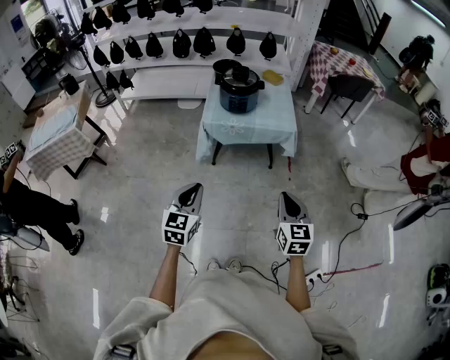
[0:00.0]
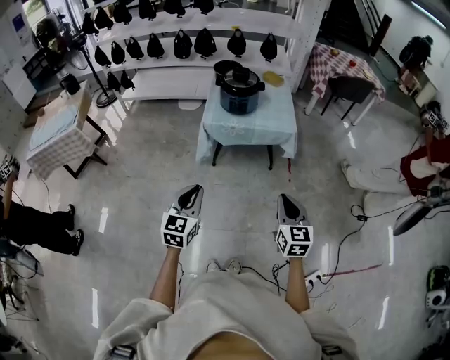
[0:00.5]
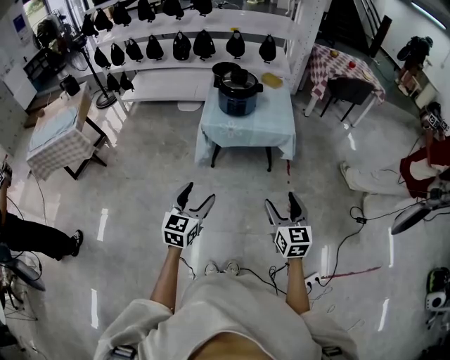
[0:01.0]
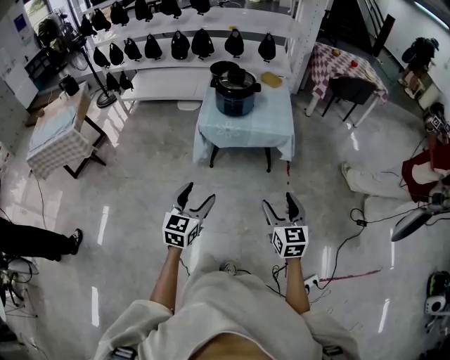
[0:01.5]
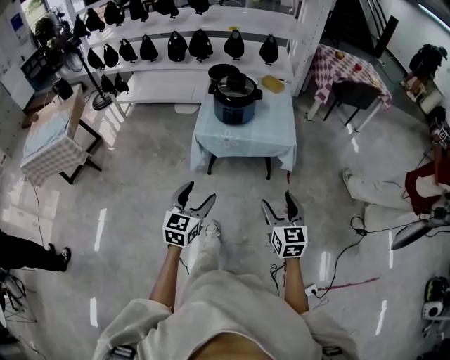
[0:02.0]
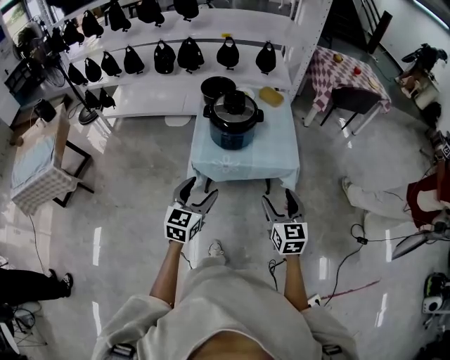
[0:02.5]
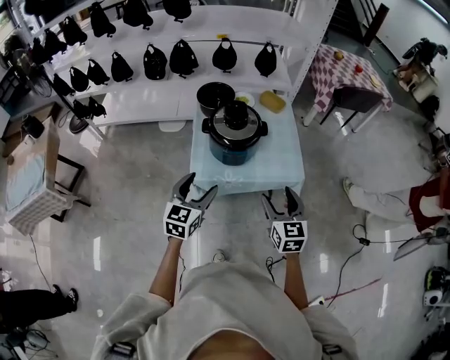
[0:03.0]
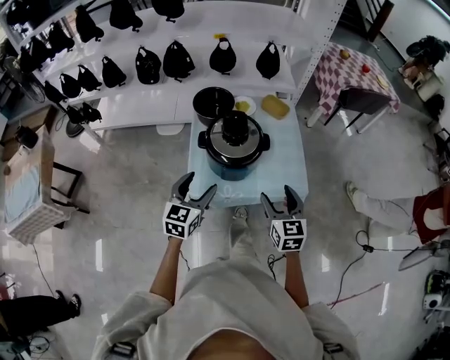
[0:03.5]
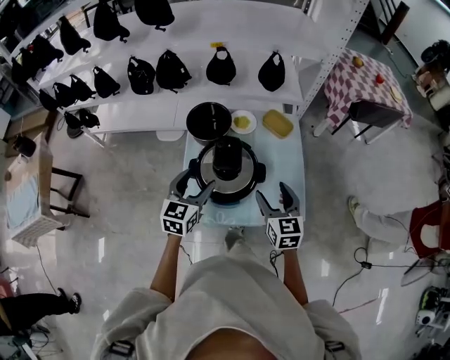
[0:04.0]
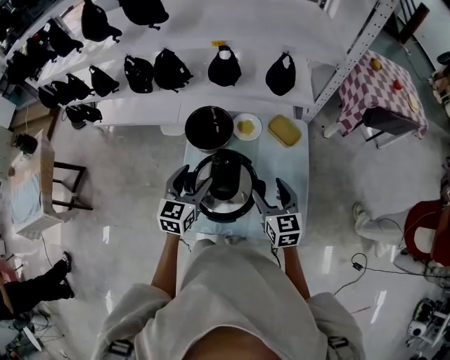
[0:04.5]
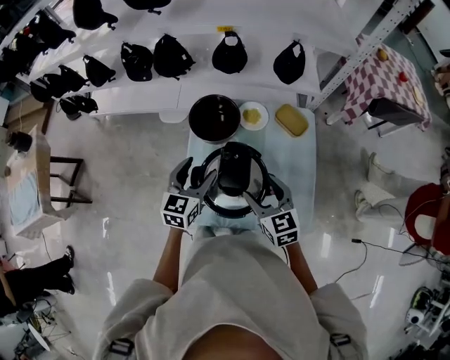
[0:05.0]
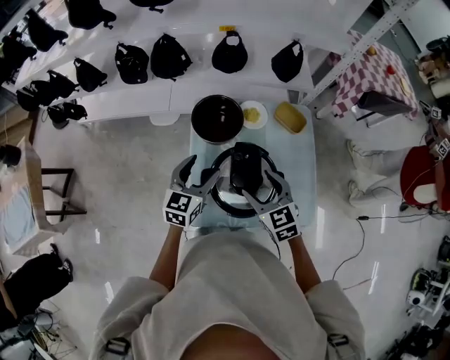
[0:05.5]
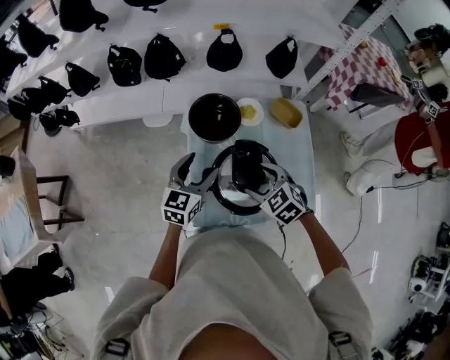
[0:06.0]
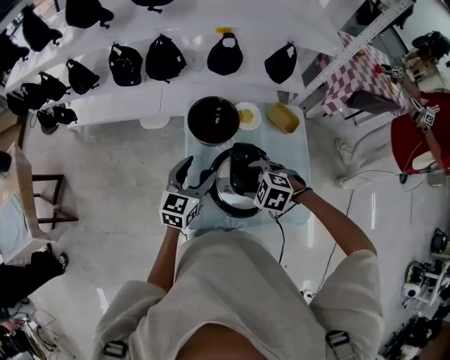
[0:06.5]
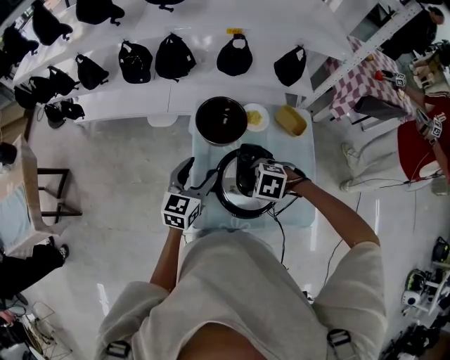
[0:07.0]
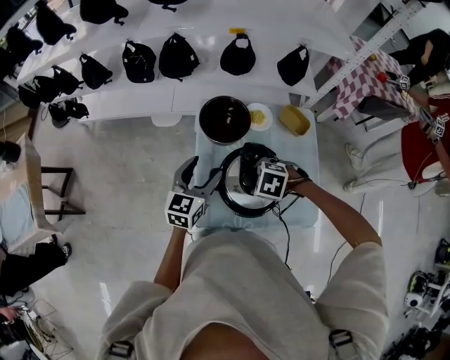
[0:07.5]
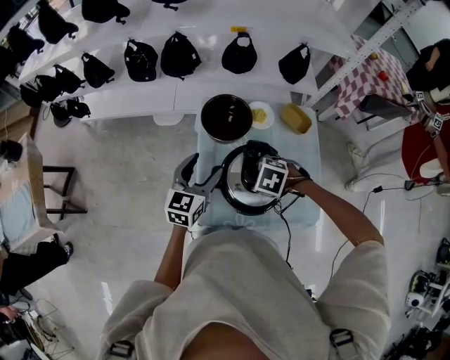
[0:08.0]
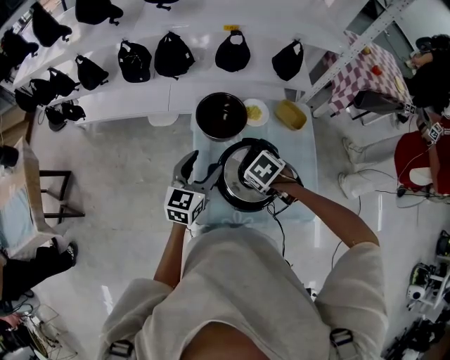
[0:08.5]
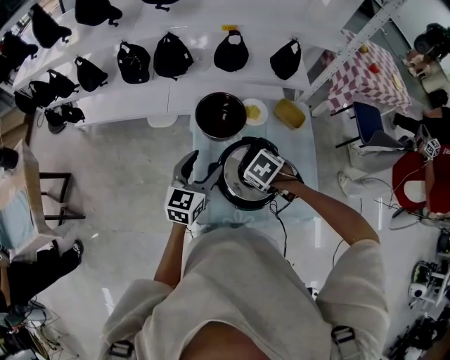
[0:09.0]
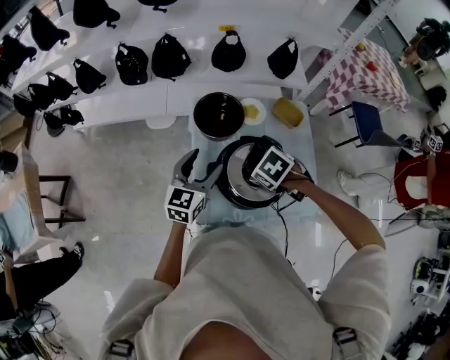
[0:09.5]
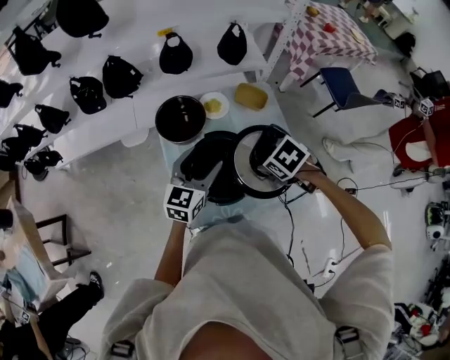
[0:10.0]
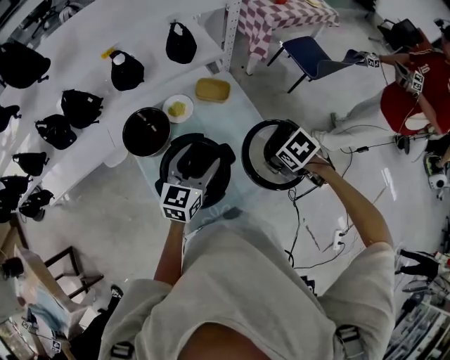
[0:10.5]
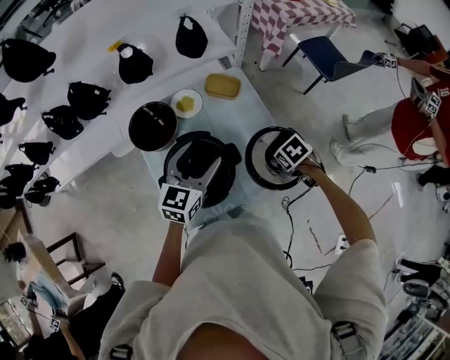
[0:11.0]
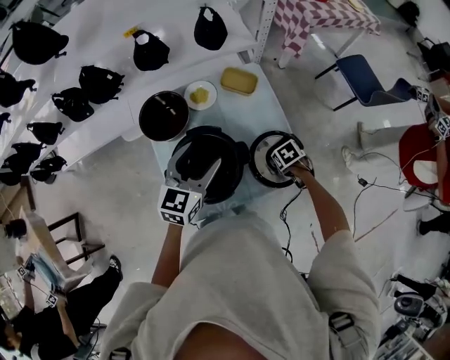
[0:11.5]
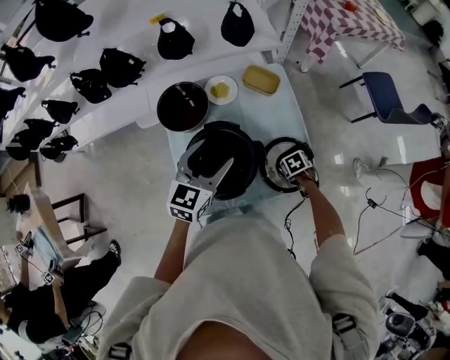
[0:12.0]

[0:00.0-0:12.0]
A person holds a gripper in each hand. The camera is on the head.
0:00.0 to 0:02.0: The left gripper travels forward and to the right by approximately 15 cm, and opens its fingers; the right gripper heads forward, covering about 10 cm, and opens its fingers.
0:02.0 to 0:04.0: The two grippers travel together, forward, roughly 60 cm.
0:04.0 to 0:06.0: The left gripper shifts approximately 15 cm forward and to the left. Meanwhile the right gripper goes about 20 cm to the left and forward, and tilts its fingers some 30 degrees downward.
0:06.0 to 0:08.0: The right gripper swivels approximately 40 degrees.
0:08.0 to 0:10.0: The left gripper shifts by about 10 cm. The right gripper changes place by some 15 cm, and rotates roughly 40 degrees.
0:10.0 to 0:12.0: The right gripper moves downward, about 25 cm, and rotates some 20 degrees.

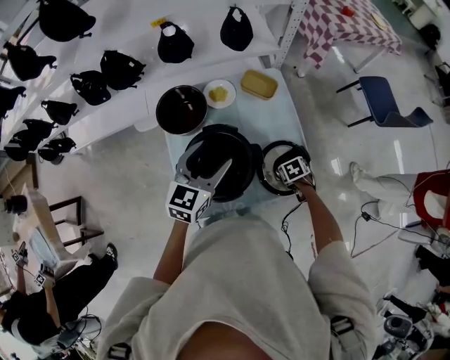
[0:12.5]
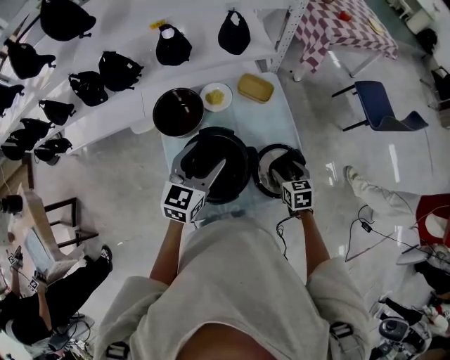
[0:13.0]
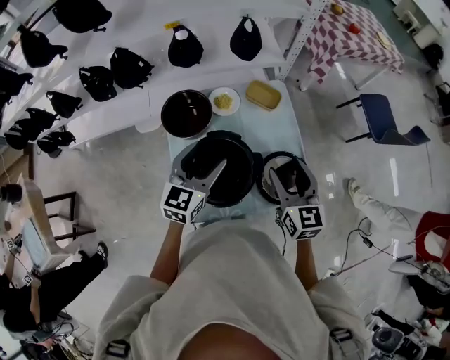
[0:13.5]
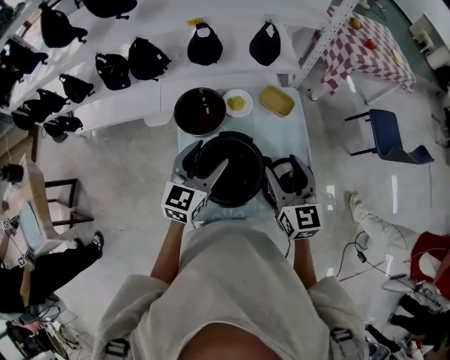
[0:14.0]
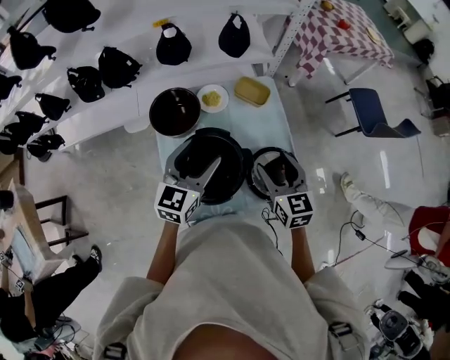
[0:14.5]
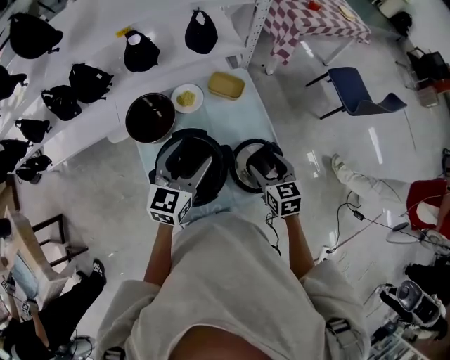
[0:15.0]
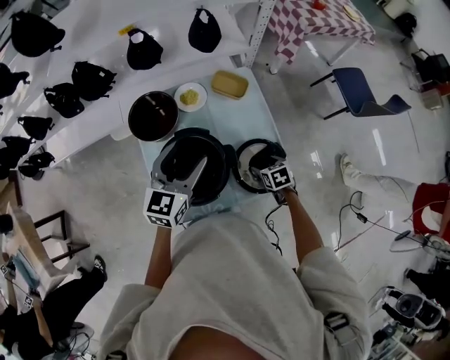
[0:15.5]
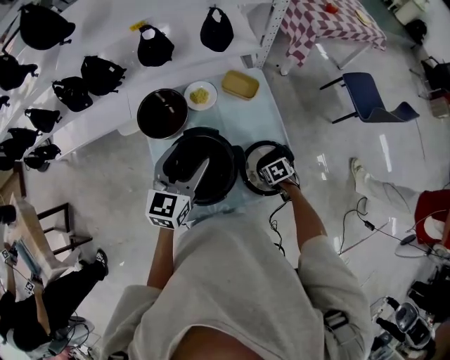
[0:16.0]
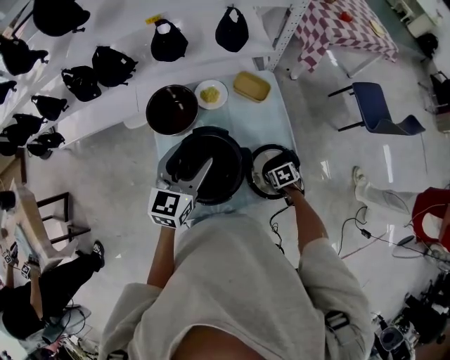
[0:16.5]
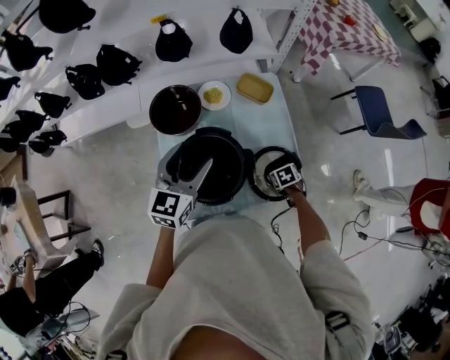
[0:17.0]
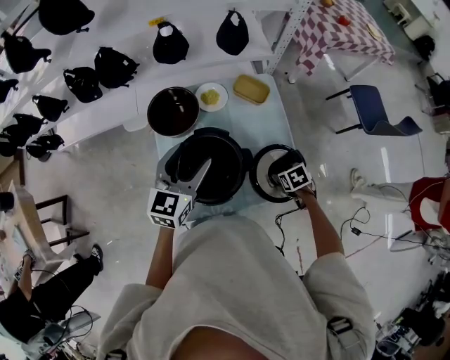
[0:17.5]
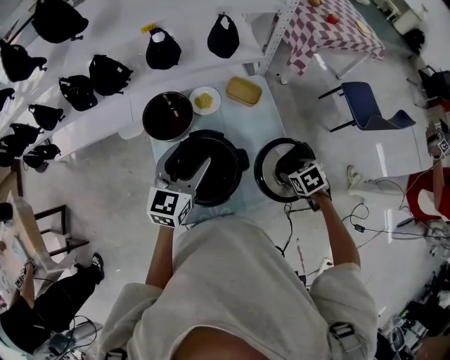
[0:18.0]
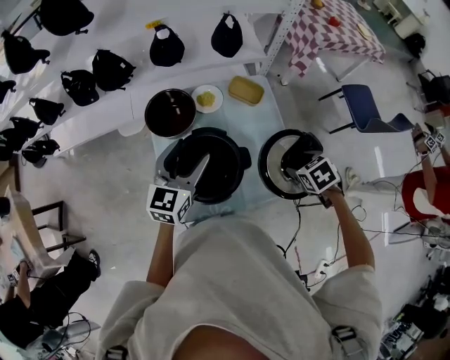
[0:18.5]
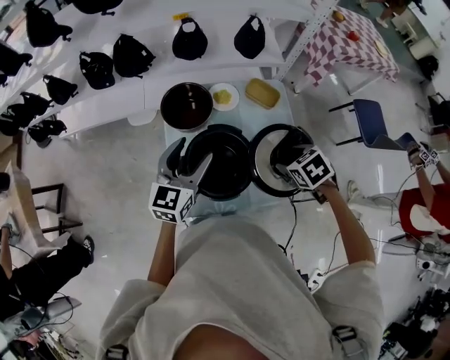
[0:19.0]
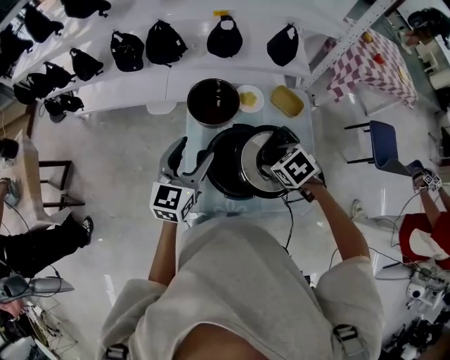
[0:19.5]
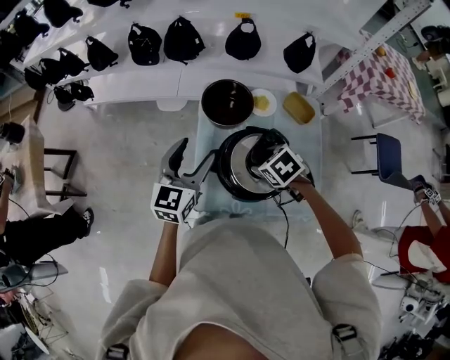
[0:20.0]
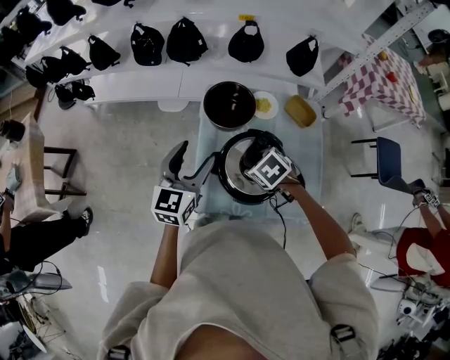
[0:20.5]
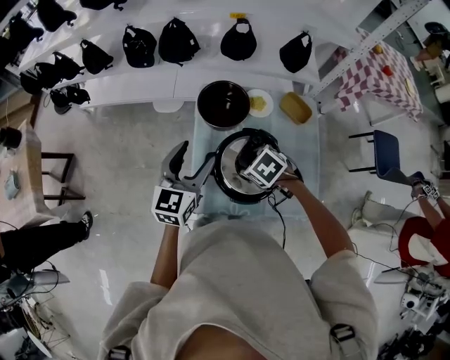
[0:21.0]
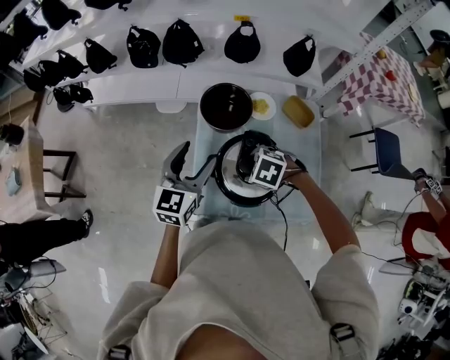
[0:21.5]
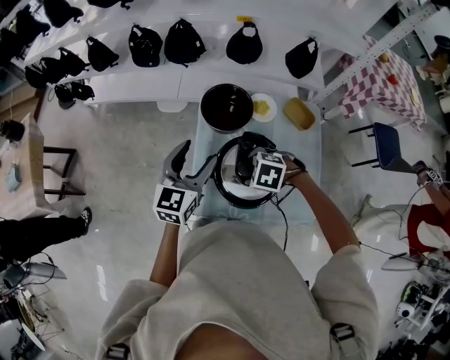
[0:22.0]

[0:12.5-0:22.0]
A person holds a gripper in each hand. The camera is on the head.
0:12.5 to 0:14.5: The right gripper heads upward, covering some 30 cm, and tips its fingers upward by approximately 60 degrees.
0:14.5 to 0:16.5: The right gripper goes approximately 30 cm downward, and tilts its fingers about 50 degrees downward.
0:16.5 to 0:18.0: The right gripper moves upward, some 15 cm.
0:18.0 to 0:20.0: The right gripper moves roughly 30 cm, and rotates some 30 degrees. Meanwhile the left gripper changes place by roughly 15 cm, and swivels approximately 20 degrees.
0:20.0 to 0:22.0: The right gripper turns by approximately 40 degrees.

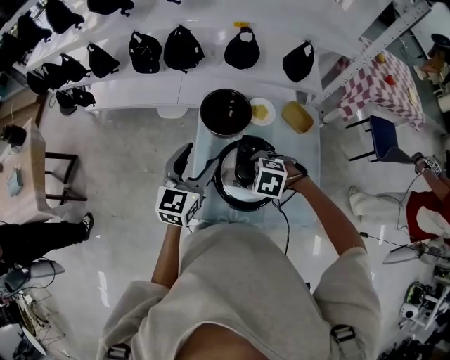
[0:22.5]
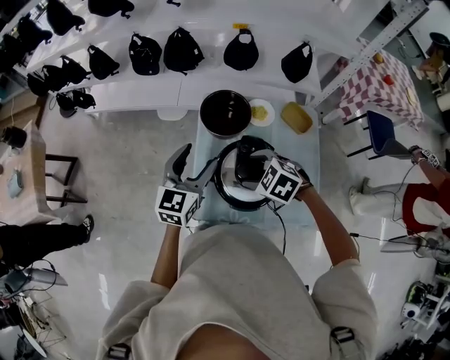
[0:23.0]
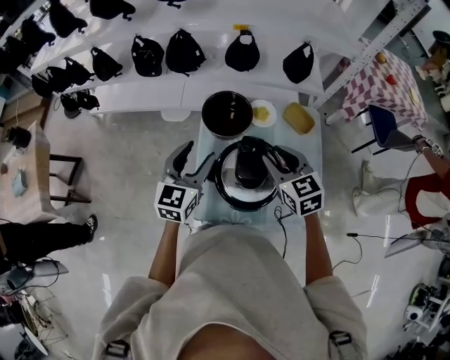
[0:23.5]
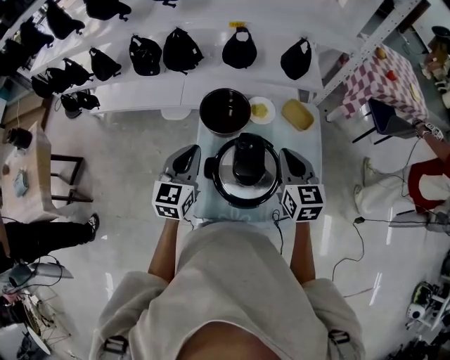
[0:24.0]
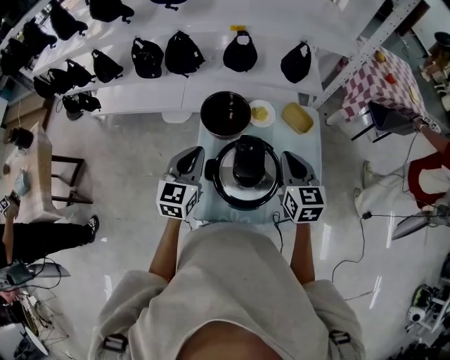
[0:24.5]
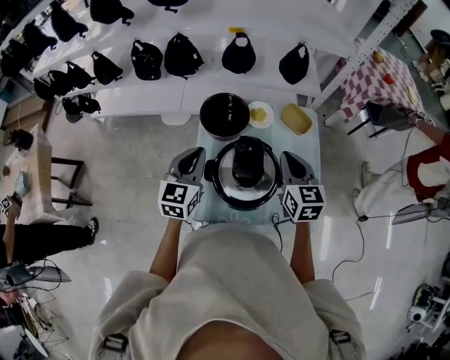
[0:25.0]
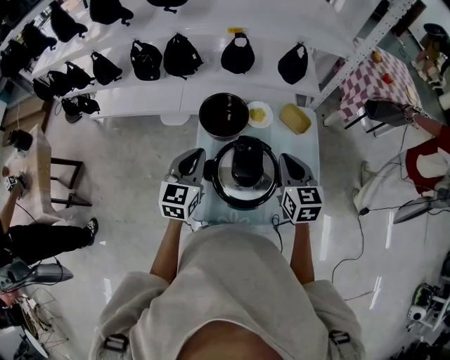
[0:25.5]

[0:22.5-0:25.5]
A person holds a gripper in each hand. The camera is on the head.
0:22.5 to 0:24.0: The right gripper heads upward, covering about 15 cm, points its fingers approximately 50 degrees further upward, and closes its fingers; the left gripper closes its fingers.
0:24.0 to 0:25.5: The grippers stay close to where they were, moving slightly.

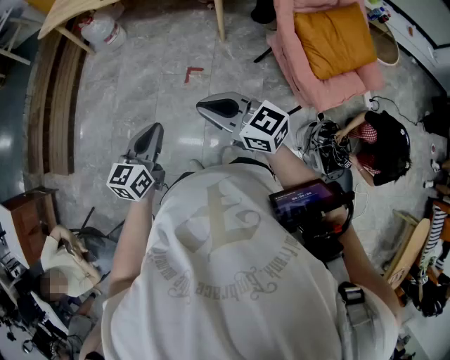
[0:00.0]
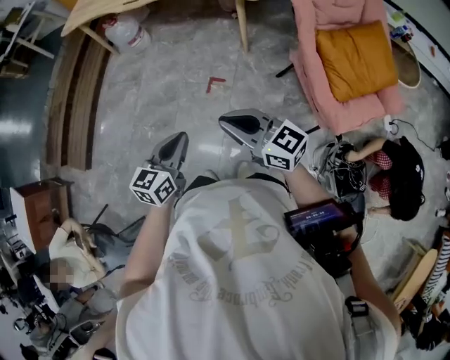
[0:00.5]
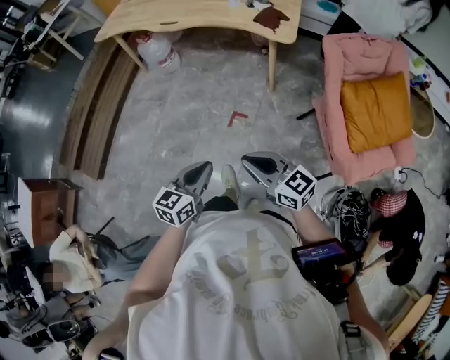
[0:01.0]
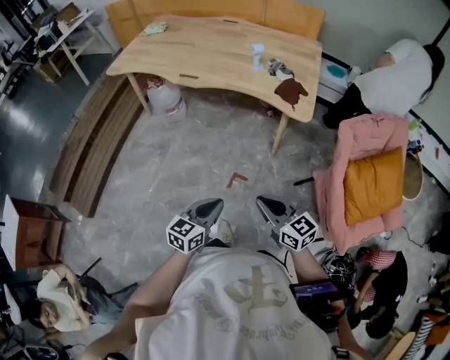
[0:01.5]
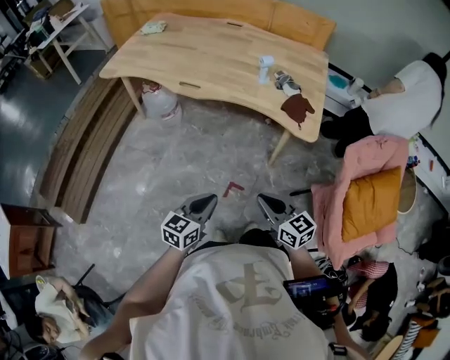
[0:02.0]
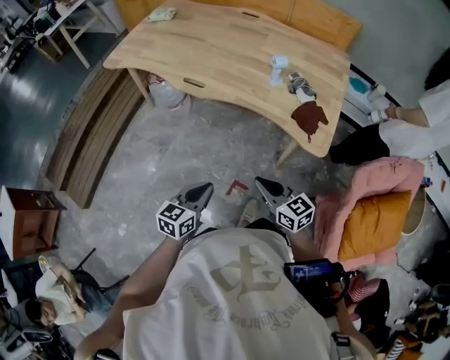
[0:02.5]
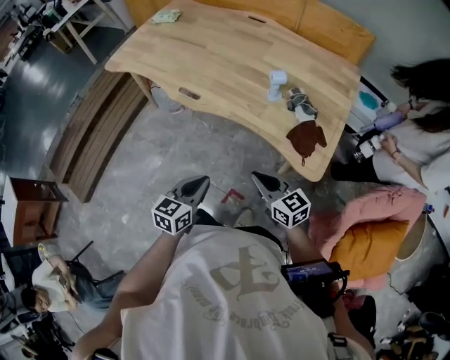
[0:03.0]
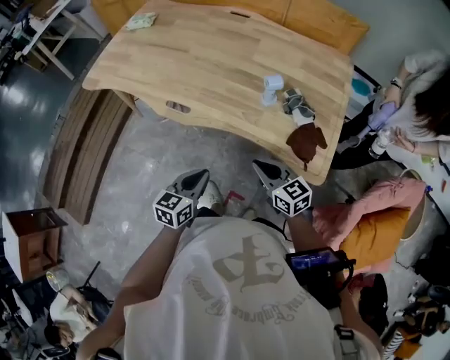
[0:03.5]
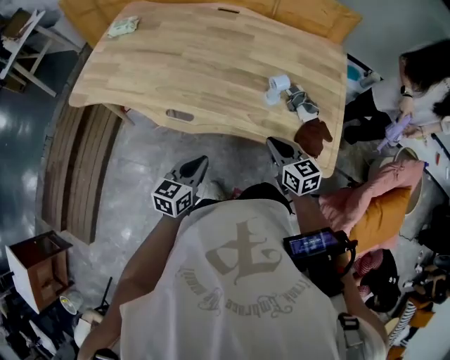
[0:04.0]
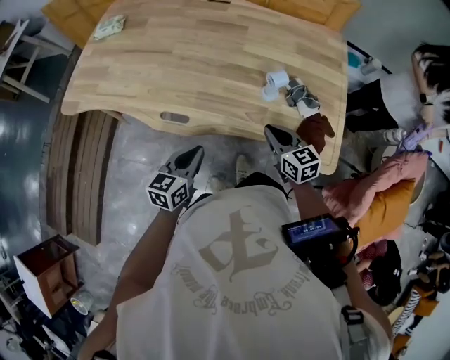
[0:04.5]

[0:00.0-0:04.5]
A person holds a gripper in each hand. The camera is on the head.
0:00.0 to 0:02.0: The two grippers go roughly 35 cm forward.
0:02.0 to 0:04.5: The pair of grippers is taken forward, about 50 cm.
